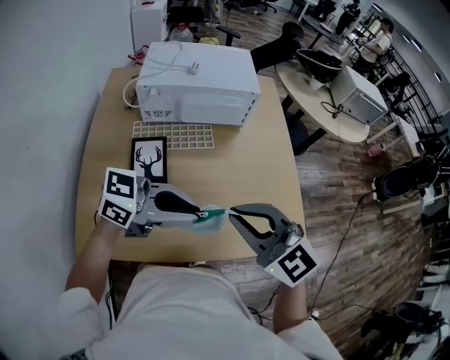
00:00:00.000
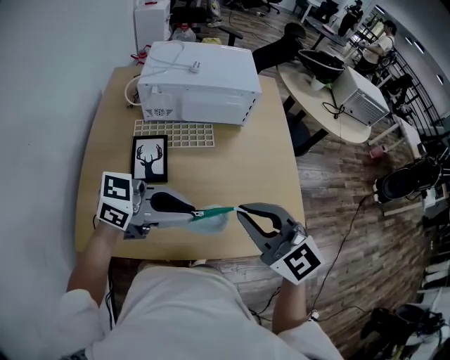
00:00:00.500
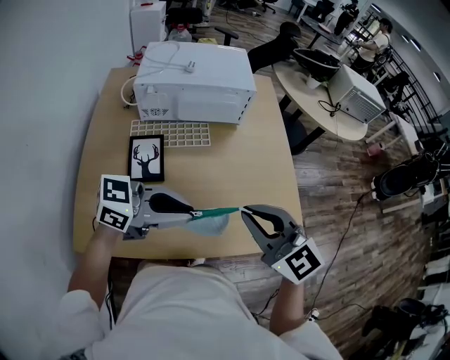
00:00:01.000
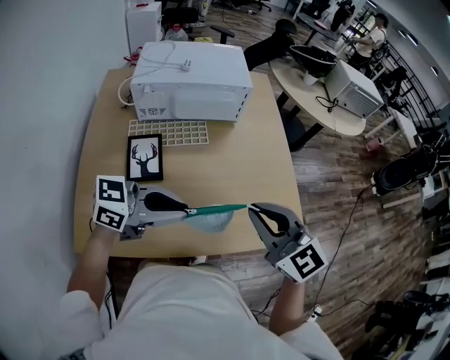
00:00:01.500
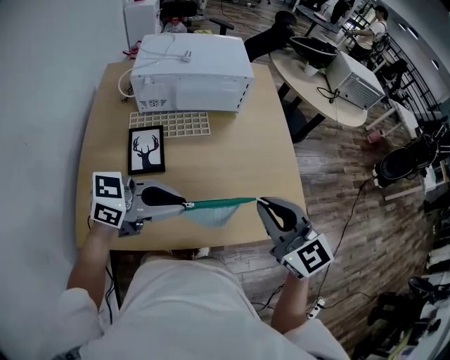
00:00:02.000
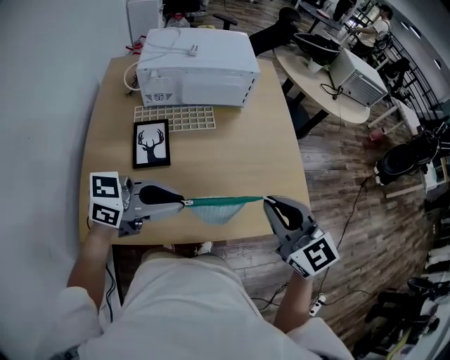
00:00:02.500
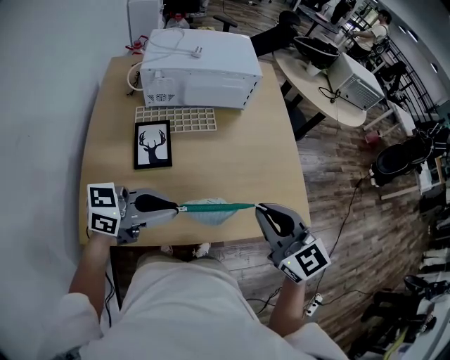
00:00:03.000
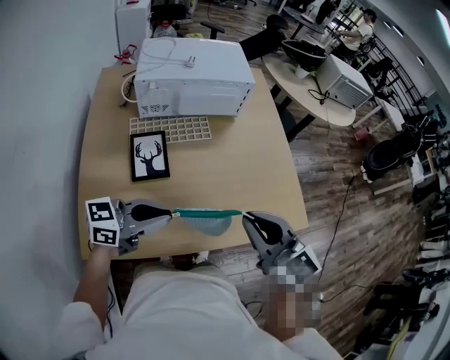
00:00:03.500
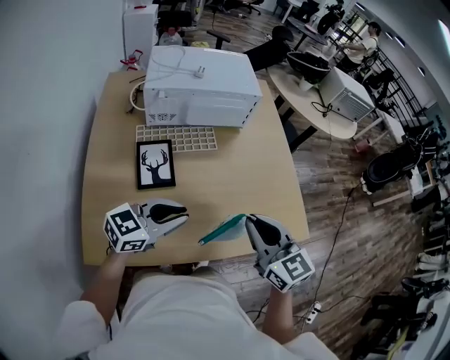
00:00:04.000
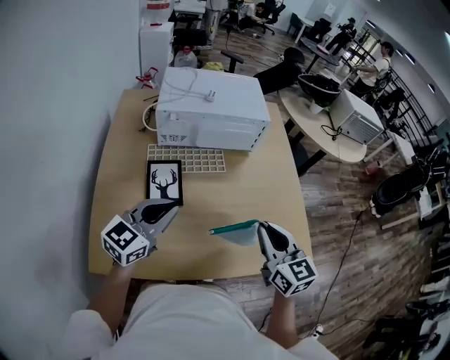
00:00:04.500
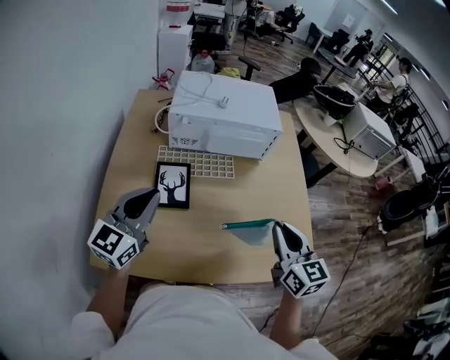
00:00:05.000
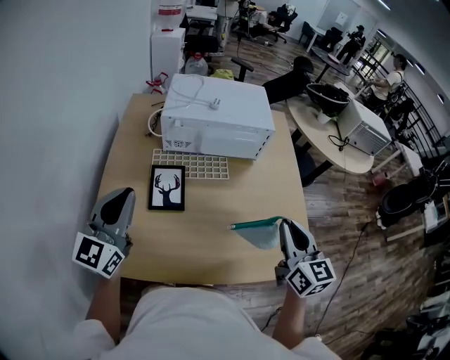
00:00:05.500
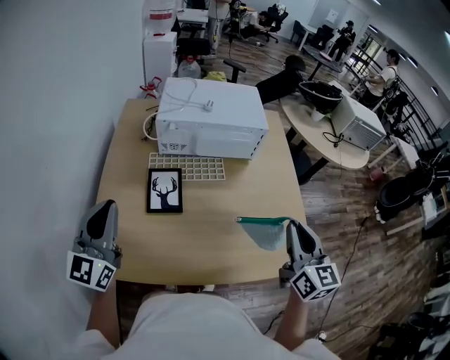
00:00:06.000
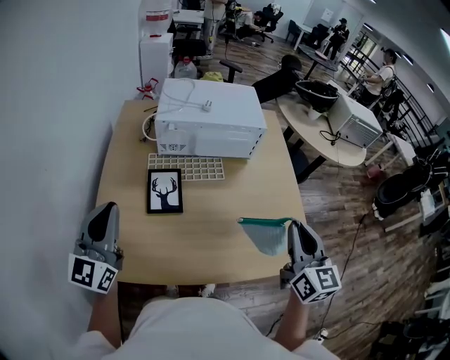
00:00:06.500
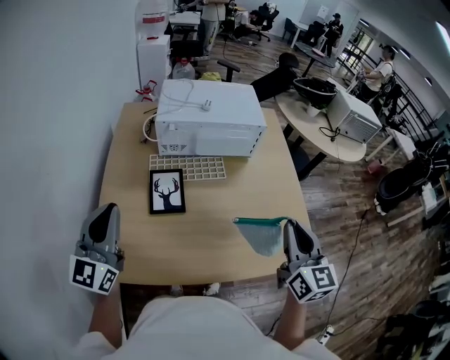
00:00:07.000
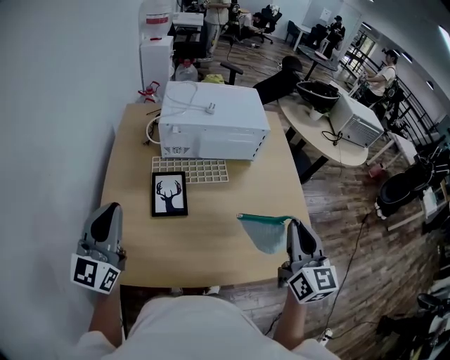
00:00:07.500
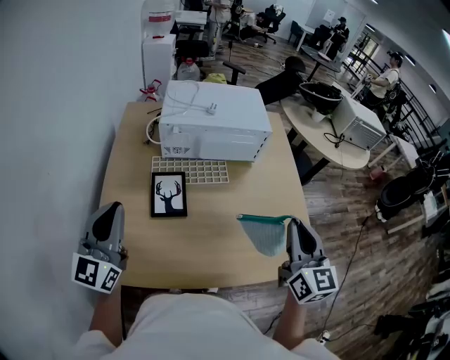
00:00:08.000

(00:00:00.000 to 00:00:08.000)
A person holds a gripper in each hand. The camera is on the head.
00:00:00.000 - 00:00:02.000: The right gripper changes place by about 10 cm, and rotates about 20 degrees.
00:00:02.000 - 00:00:04.000: The right gripper shifts approximately 5 cm to the left, while the left gripper shifts approximately 10 cm to the left and downward.
00:00:04.000 - 00:00:06.000: The right gripper shifts some 15 cm to the right, upward and forward, while the left gripper moves to the left and upward, some 25 cm, and changes its angle by some 60 degrees.
00:00:06.000 - 00:00:08.000: The grippers make only small movements.

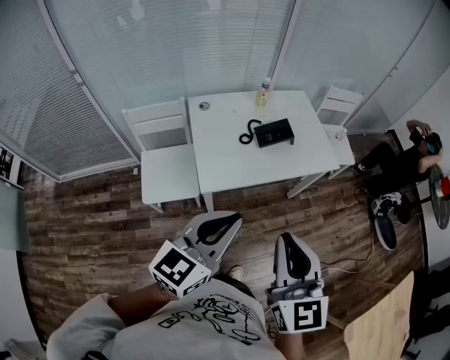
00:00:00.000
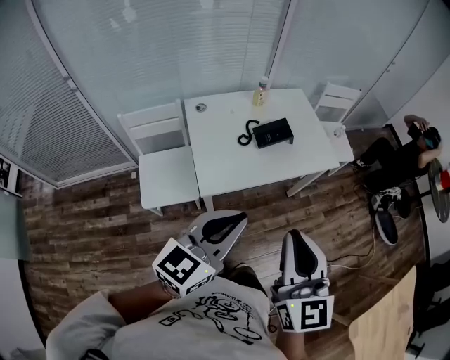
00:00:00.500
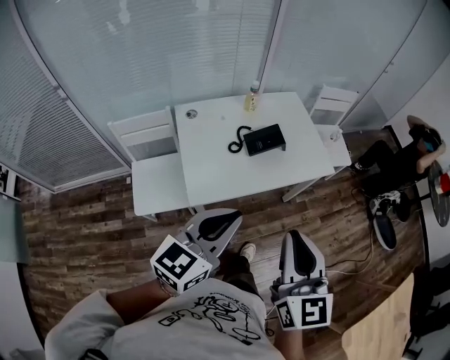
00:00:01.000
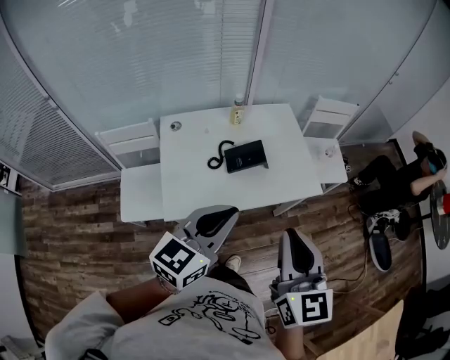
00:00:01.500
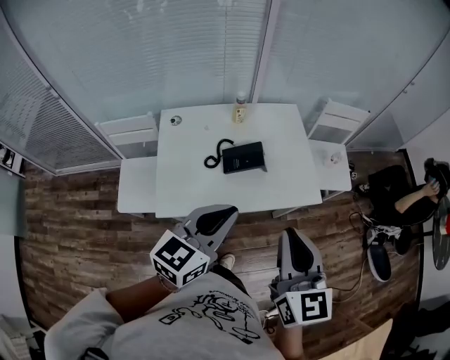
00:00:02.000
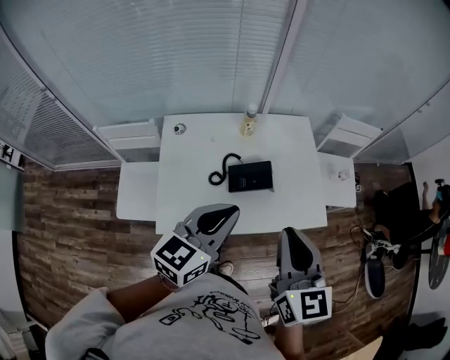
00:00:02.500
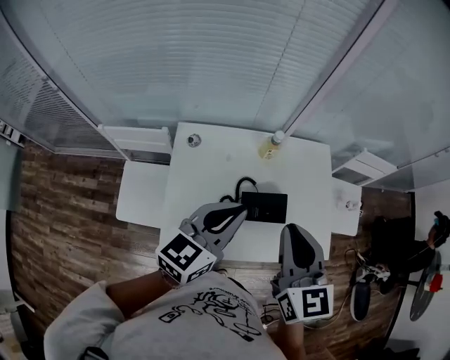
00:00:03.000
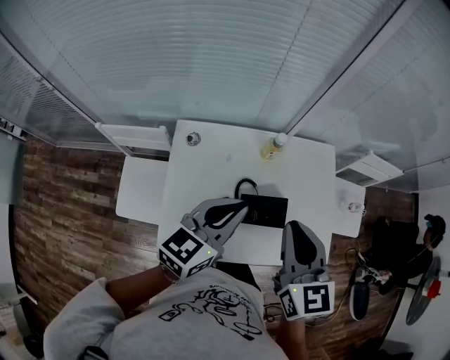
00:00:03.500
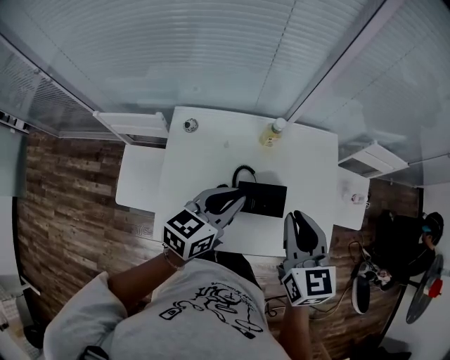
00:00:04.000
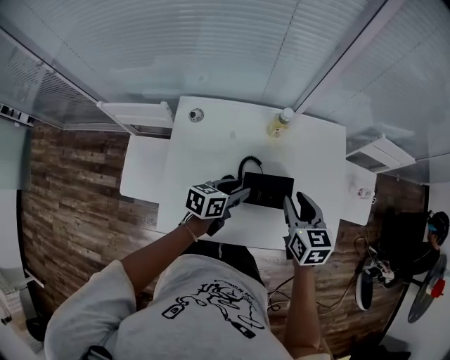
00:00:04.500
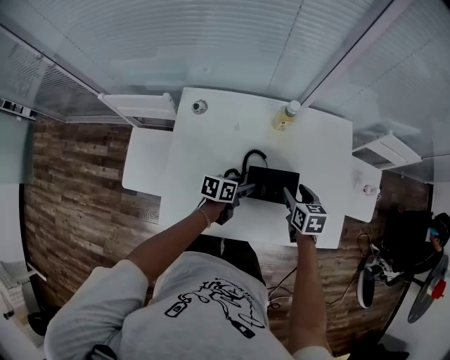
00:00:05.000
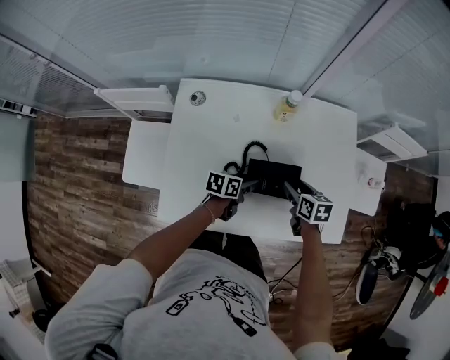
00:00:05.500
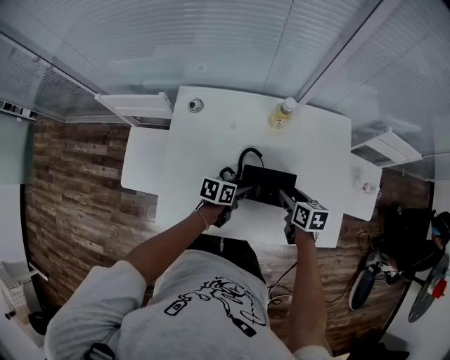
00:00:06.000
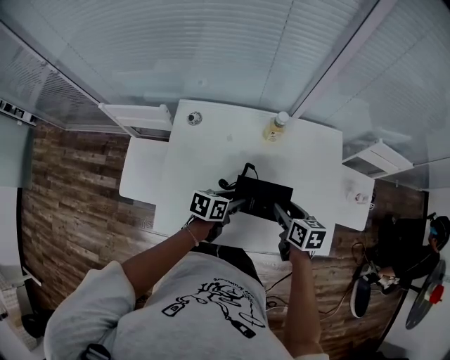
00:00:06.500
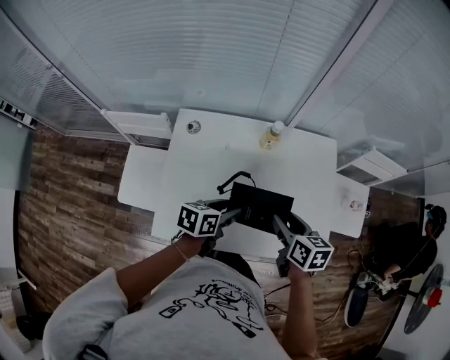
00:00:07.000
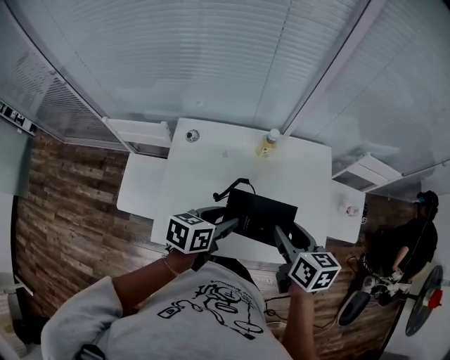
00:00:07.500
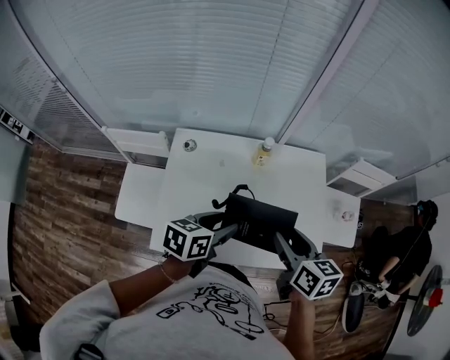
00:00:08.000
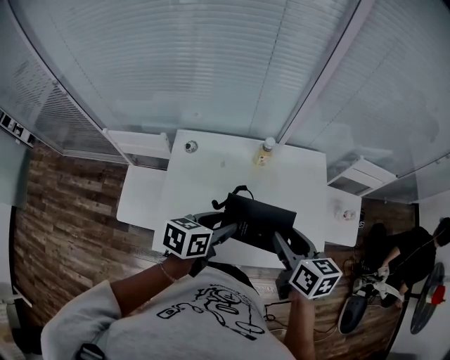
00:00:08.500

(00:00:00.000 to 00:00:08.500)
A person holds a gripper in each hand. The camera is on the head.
00:00:00.000 - 00:00:02.000: Both grippers move forward and to the right, roughly 30 cm.
00:00:02.000 - 00:00:04.000: The right gripper is displaced forward by roughly 30 cm; the left gripper shifts some 30 cm forward, downward and to the left.
00:00:04.000 - 00:00:06.500: The two grippers go some 20 cm downward. The left gripper rotates about 30 degrees, and opens up; the right gripper swivels some 30 degrees, and opens its fingers.
00:00:06.500 - 00:00:08.500: Both grippers travel together upward, about 20 cm.

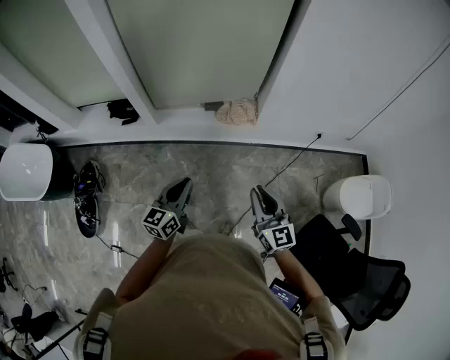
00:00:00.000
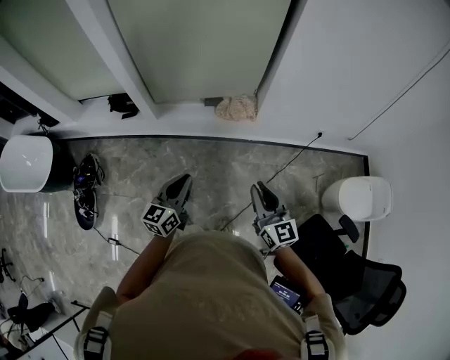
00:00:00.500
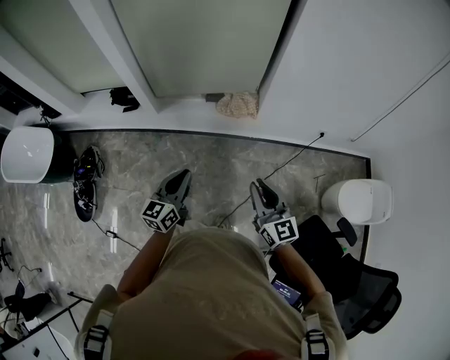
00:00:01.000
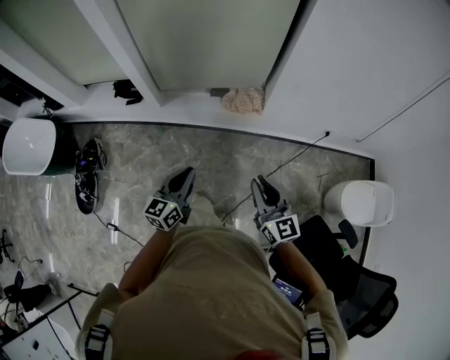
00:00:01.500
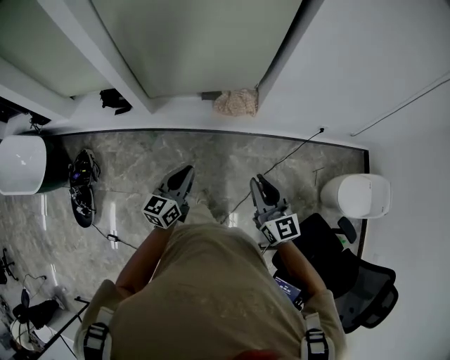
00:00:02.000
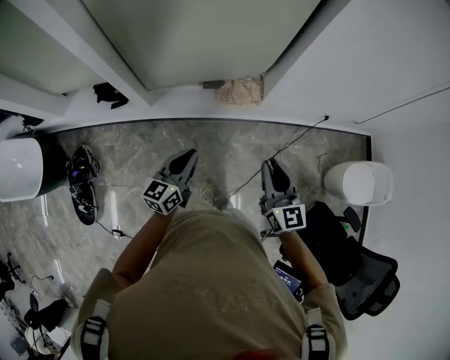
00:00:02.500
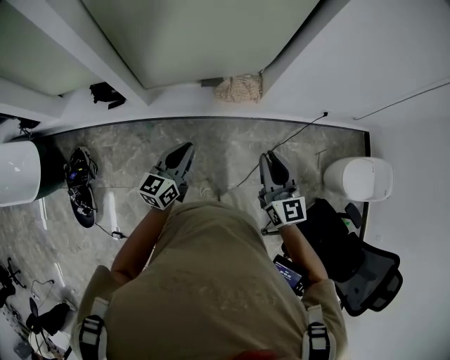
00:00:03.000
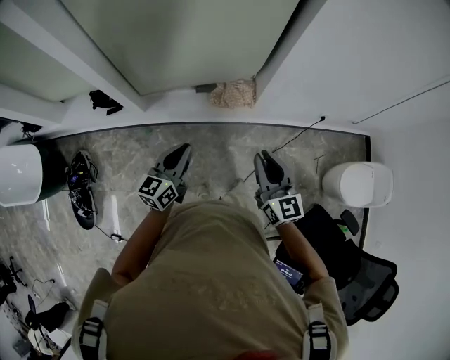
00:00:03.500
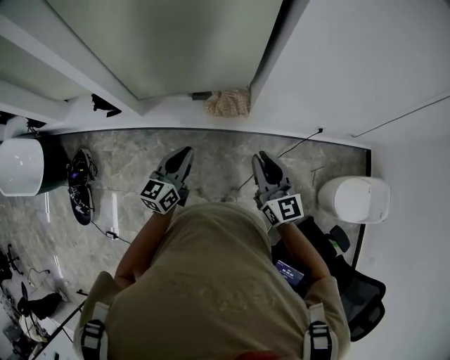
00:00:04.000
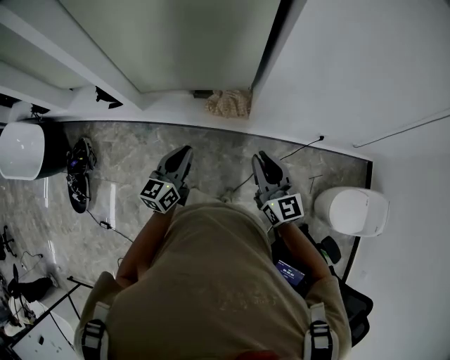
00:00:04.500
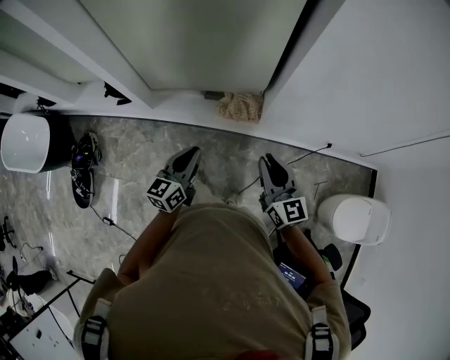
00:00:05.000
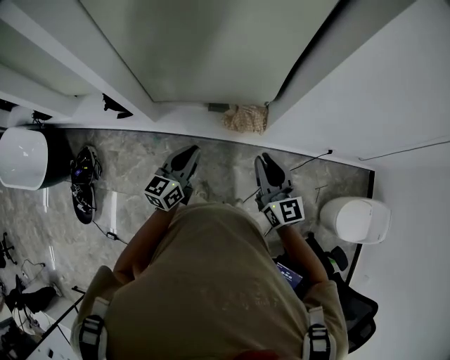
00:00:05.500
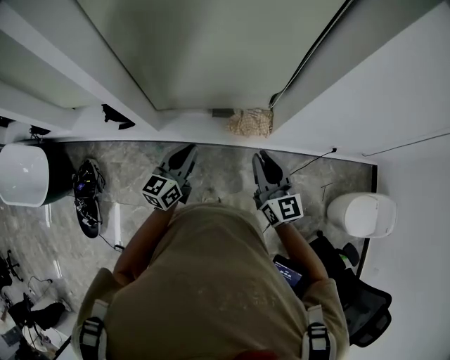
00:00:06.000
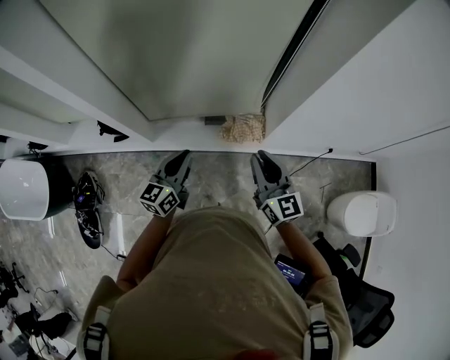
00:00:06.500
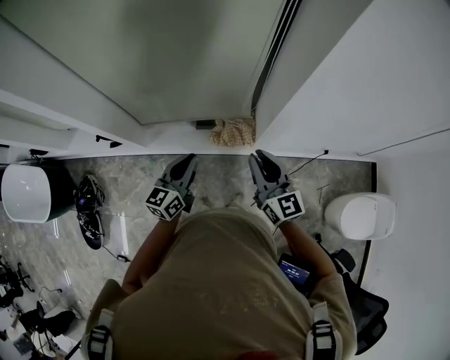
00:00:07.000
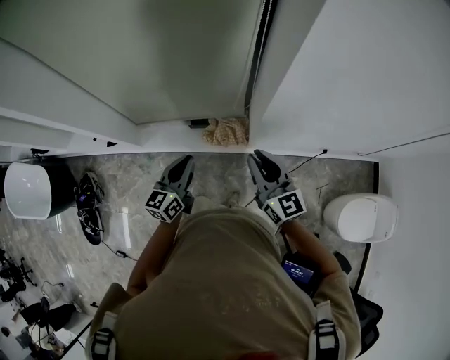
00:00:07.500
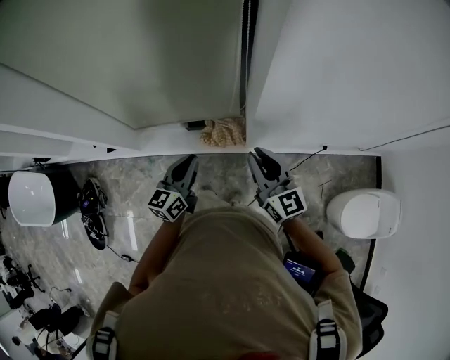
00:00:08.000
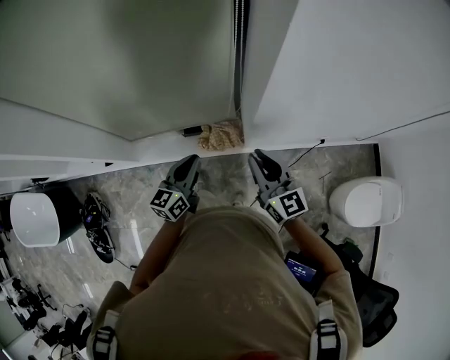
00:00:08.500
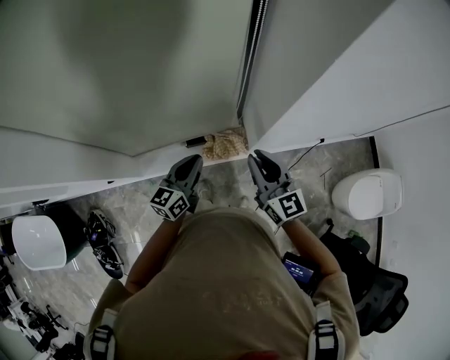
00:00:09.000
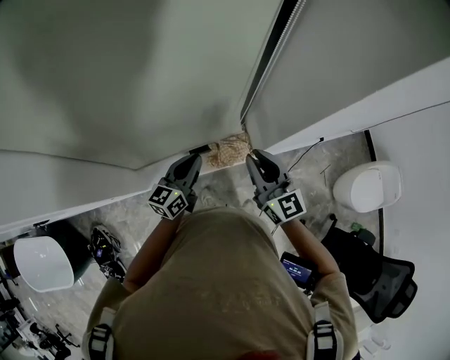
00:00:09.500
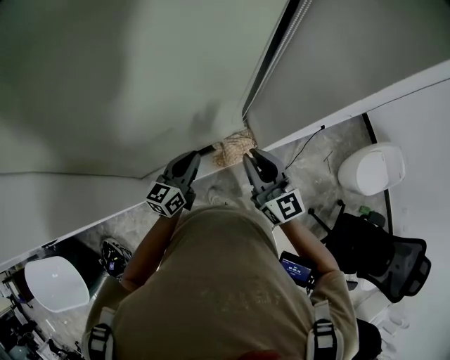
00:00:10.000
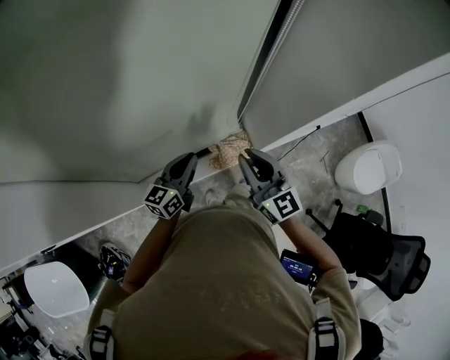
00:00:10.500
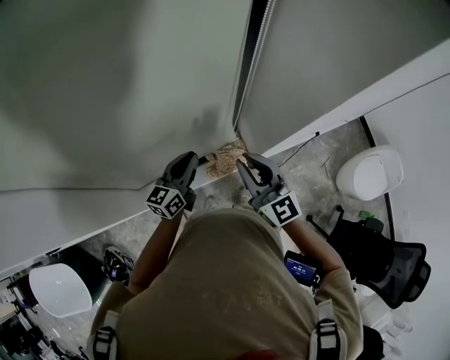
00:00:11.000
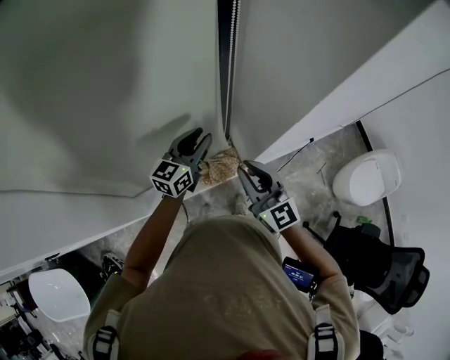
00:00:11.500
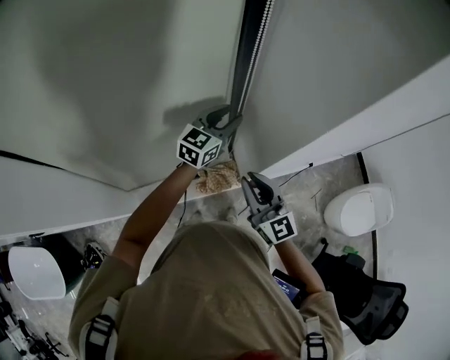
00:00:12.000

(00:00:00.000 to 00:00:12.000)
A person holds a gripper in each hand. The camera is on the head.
00:00:00.000 - 00:00:02.000: The grippers both shift forward by some 10 cm.
00:00:02.000 - 00:00:04.000: Both grippers travel together forward and to the right, approximately 20 cm.
00:00:04.000 - 00:00:06.000: Both grippers move to the left and forward, some 20 cm.
00:00:06.000 - 00:00:08.000: The right gripper shifts approximately 25 cm to the right and forward. The left gripper heads to the right, covering about 25 cm.
00:00:08.000 - 00:00:10.000: Both grippers travel together to the left and forward, roughly 25 cm. The left gripper swivels some 30 degrees. Meanwhile the right gripper turns by some 20 degrees.
00:00:10.000 - 00:00:12.000: The right gripper moves to the right, roughly 10 cm; the left gripper is displaced to the right, forward and upward by roughly 30 cm, rotates about 20 degrees, and opens up.
